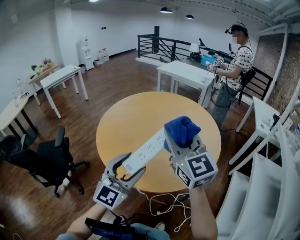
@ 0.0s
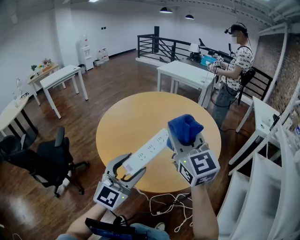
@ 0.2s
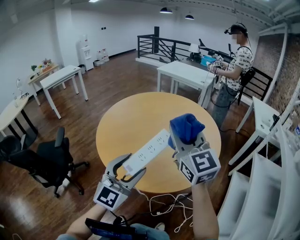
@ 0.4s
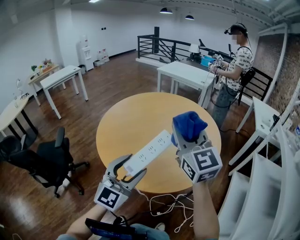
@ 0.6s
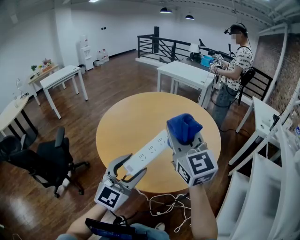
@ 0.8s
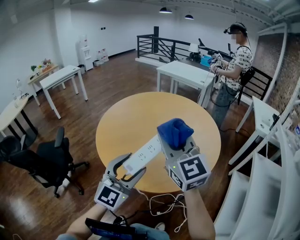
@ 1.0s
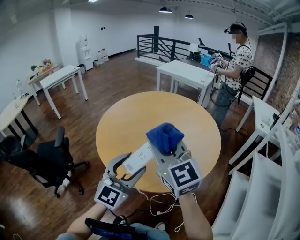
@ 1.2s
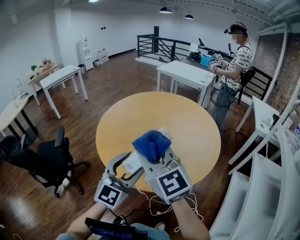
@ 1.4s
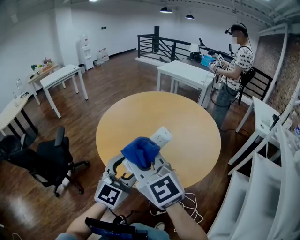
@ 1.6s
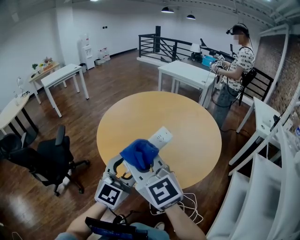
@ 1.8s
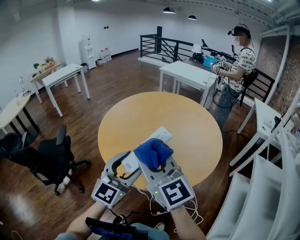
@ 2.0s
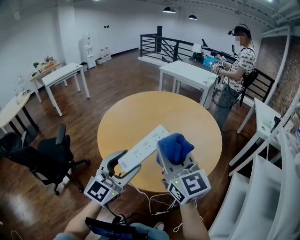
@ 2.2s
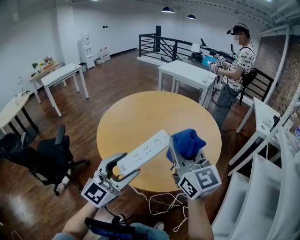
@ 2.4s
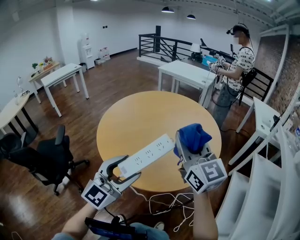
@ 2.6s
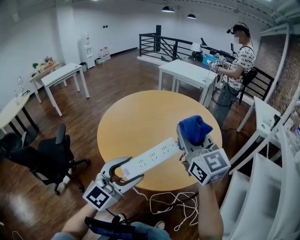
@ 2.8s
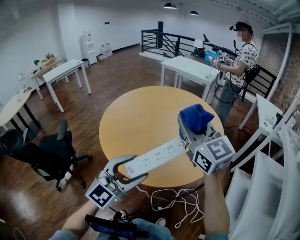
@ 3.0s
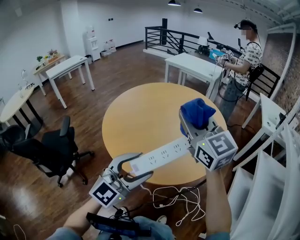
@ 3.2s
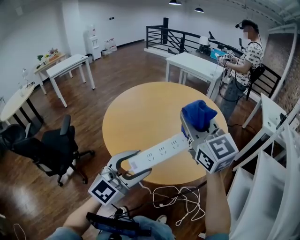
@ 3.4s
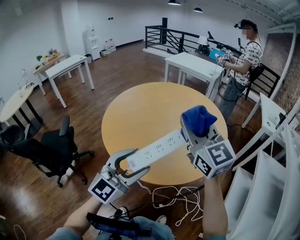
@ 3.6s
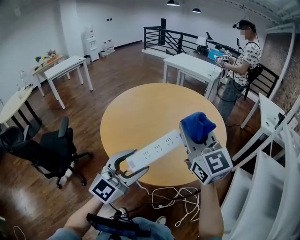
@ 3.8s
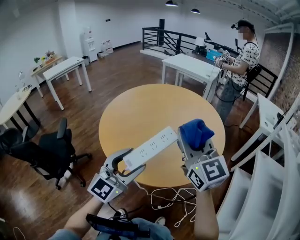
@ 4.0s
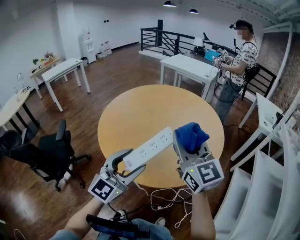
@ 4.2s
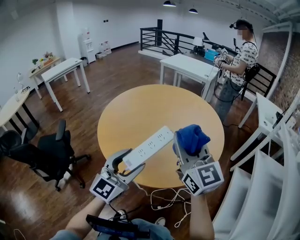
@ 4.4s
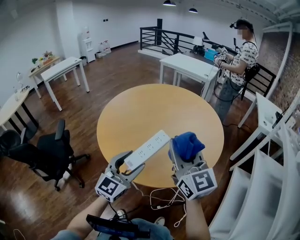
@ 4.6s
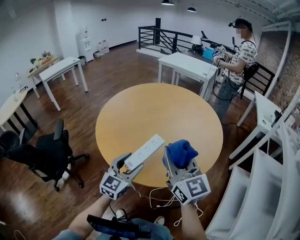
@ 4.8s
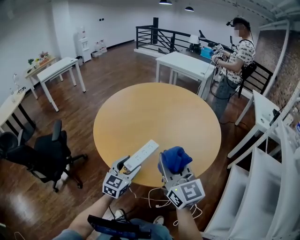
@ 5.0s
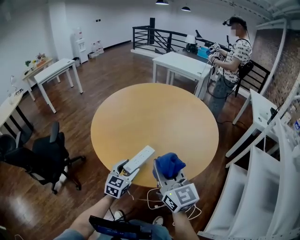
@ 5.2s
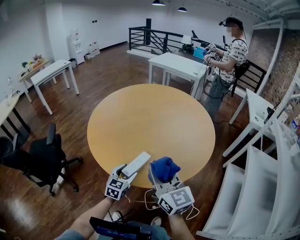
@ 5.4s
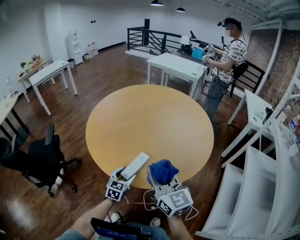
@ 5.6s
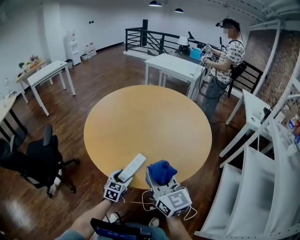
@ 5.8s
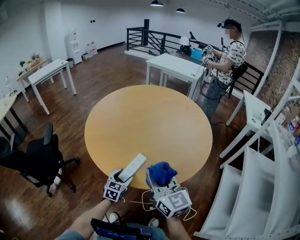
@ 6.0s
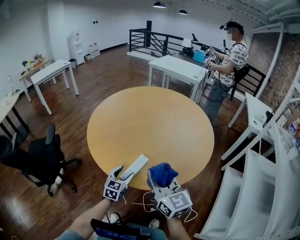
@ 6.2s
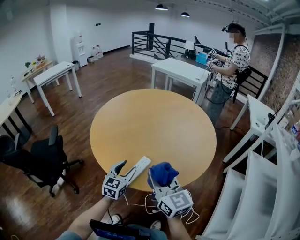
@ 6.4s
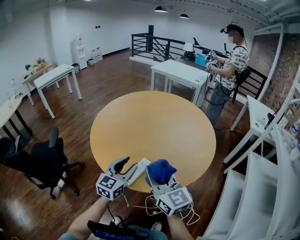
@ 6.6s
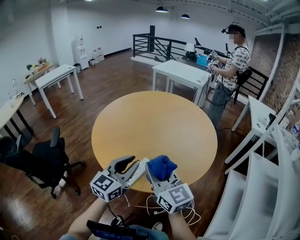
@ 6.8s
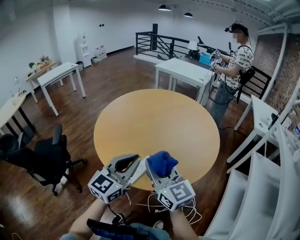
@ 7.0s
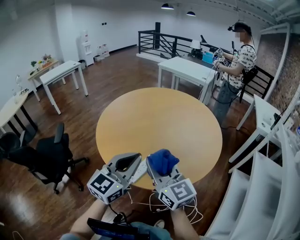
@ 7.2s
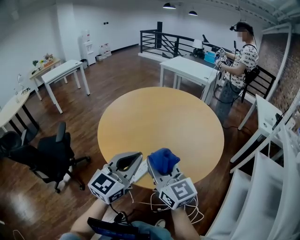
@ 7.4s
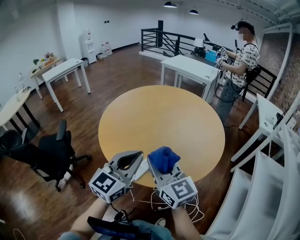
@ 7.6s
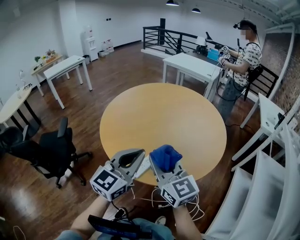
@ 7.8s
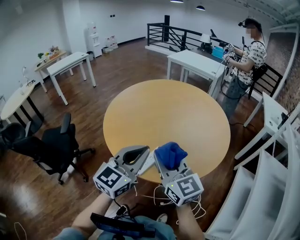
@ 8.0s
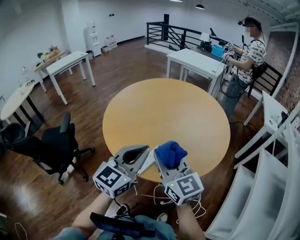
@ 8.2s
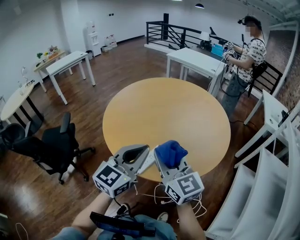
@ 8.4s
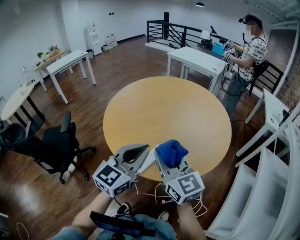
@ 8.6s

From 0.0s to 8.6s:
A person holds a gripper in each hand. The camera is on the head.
From 0.0s to 1.4s: The right gripper shifts some 10 cm to the left and backward.
From 1.4s to 2.8s: The right gripper goes roughly 15 cm to the right and forward.
From 2.8s to 4.4s: The left gripper ends up approximately 5 cm from where it was.
From 4.4s to 5.8s: The left gripper travels downward by about 30 cm, and tips its fingers downward by some 30 degrees. The right gripper moves downward and backward, about 15 cm.
From 5.8s to 7.2s: The right gripper ends up about 5 cm from where it was, while the left gripper is displaced upward by approximately 30 cm, angles its fingers upward, by roughly 30 degrees, and closes up.
From 7.2s to 8.6s: Both grippers stay put.

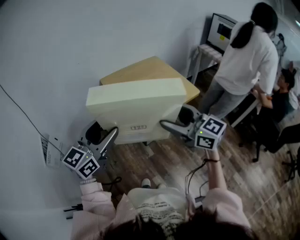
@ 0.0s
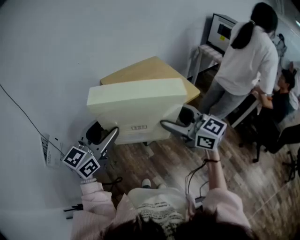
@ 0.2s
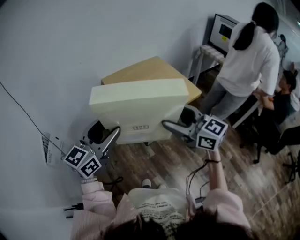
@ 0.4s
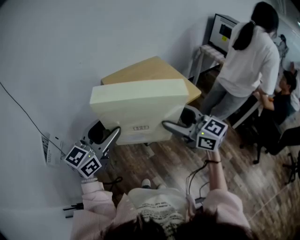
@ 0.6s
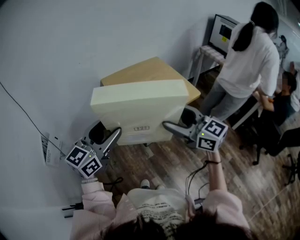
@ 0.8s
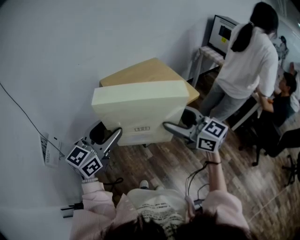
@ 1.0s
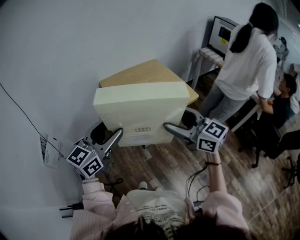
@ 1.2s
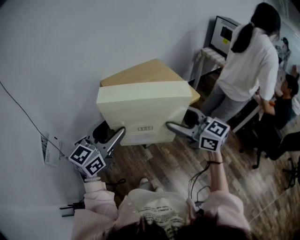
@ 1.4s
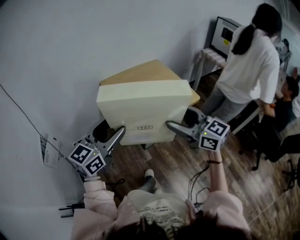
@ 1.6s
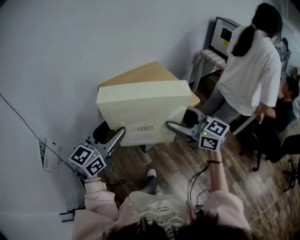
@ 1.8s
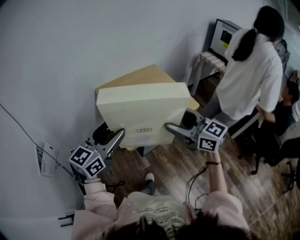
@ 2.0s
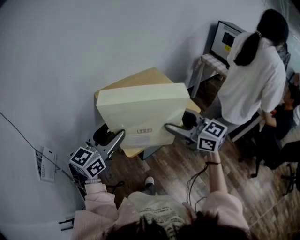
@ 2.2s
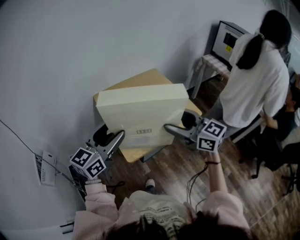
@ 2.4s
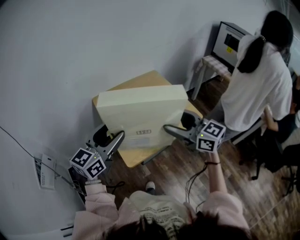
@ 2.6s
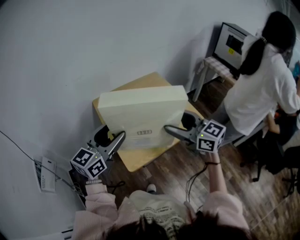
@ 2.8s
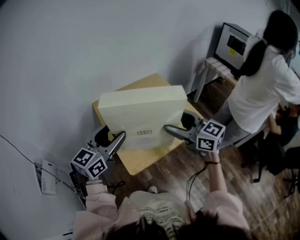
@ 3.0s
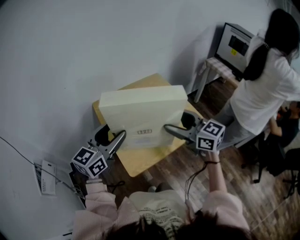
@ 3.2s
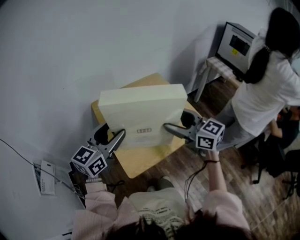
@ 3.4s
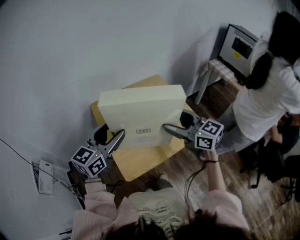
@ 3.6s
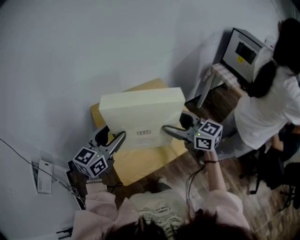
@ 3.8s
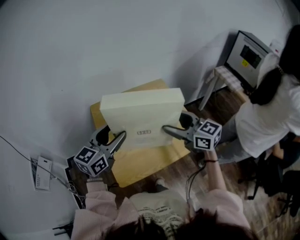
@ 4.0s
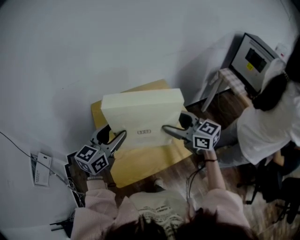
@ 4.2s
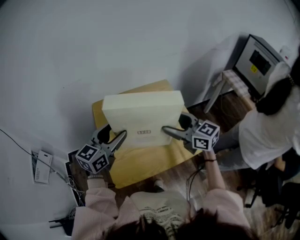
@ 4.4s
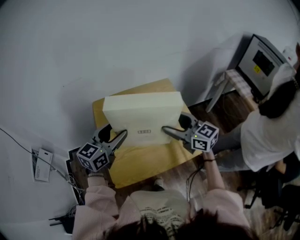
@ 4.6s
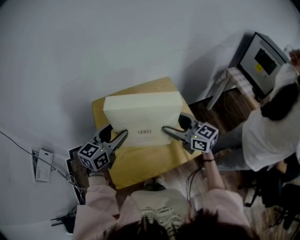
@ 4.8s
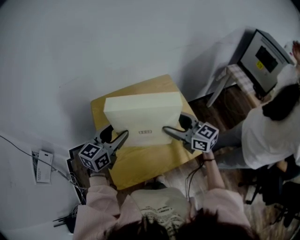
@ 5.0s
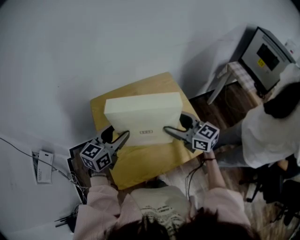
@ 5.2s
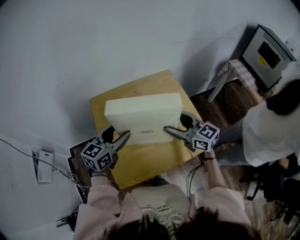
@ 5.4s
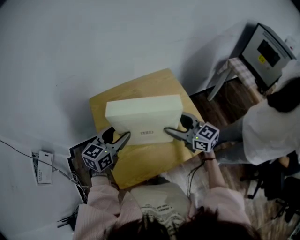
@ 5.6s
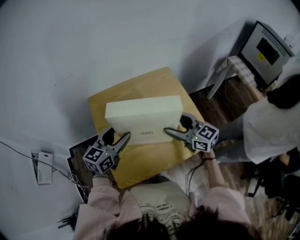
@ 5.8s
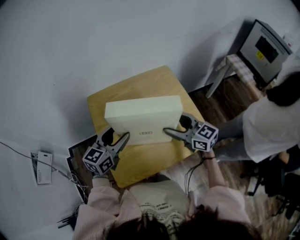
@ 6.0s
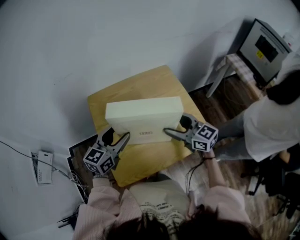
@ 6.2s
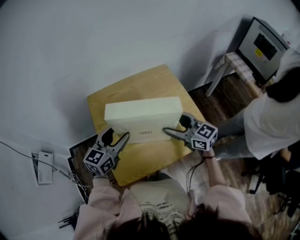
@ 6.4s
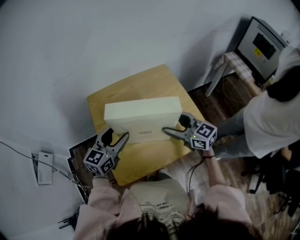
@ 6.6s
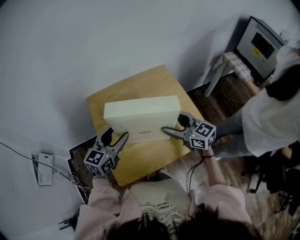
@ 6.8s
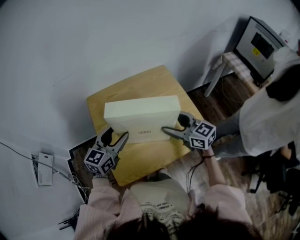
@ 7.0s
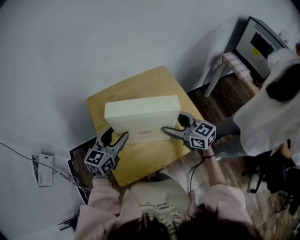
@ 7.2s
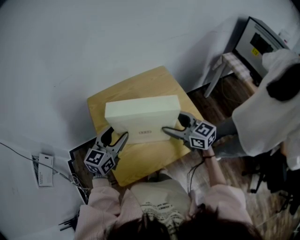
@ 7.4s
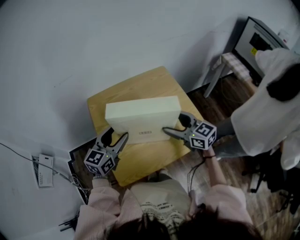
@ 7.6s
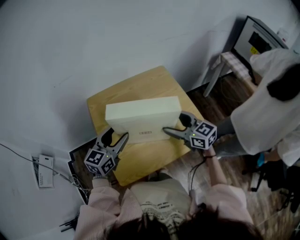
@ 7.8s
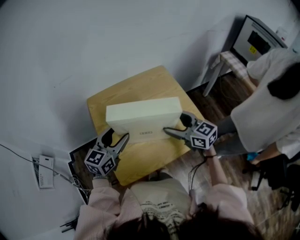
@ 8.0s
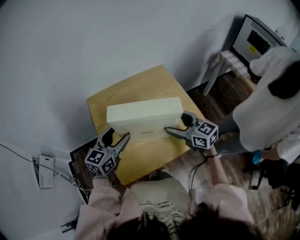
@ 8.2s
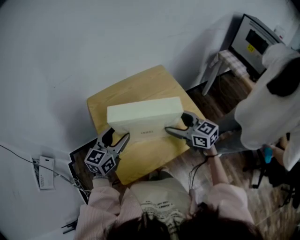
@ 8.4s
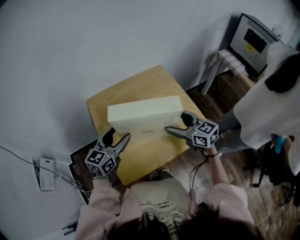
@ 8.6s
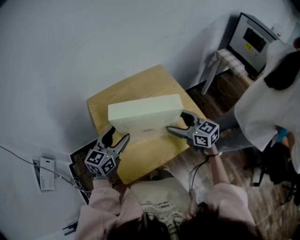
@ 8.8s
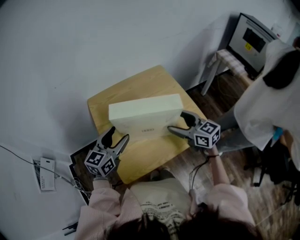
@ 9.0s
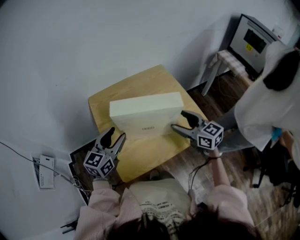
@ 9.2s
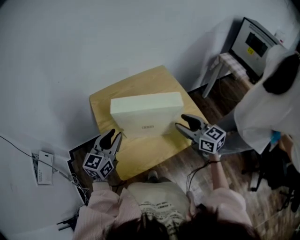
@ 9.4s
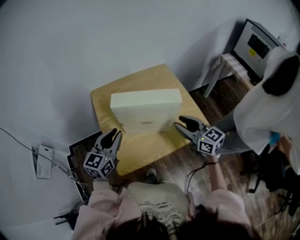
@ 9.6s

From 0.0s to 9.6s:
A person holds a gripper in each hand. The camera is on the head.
From 0.0s to 1.6s: The grippers both shift to the right by some 5 cm.
From 1.6s to 3.2s: Both grippers travel together forward, approximately 20 cm.
From 3.2s to 4.8s: The grippers both shift forward, to the right and downward by about 15 cm.
From 4.8s to 6.4s: Both grippers travel together downward, some 5 cm.
From 6.4s to 8.0s: The grippers move only a little.
From 8.0s to 9.6s: Both grippers travel together backward, some 5 cm. The left gripper closes, while the right gripper closes up.

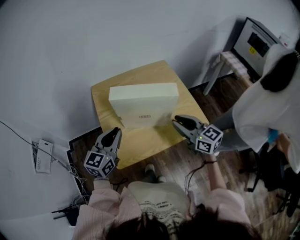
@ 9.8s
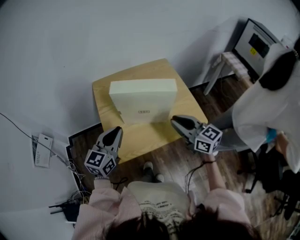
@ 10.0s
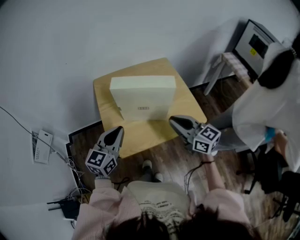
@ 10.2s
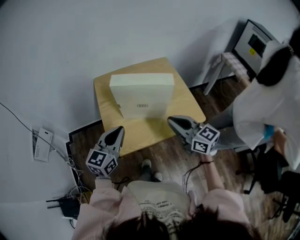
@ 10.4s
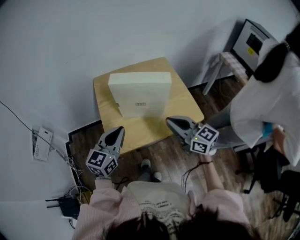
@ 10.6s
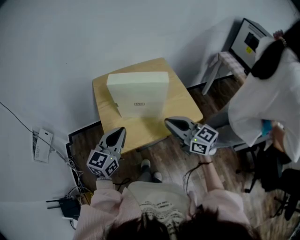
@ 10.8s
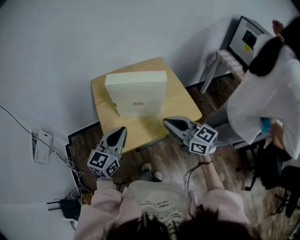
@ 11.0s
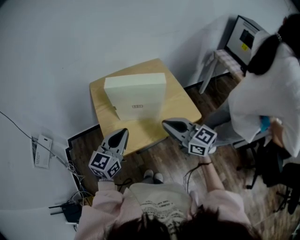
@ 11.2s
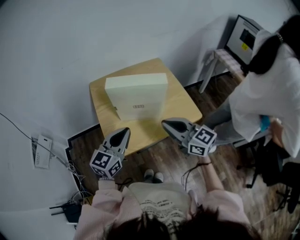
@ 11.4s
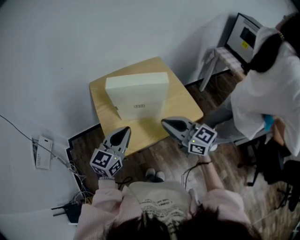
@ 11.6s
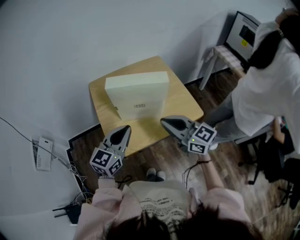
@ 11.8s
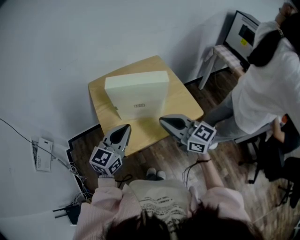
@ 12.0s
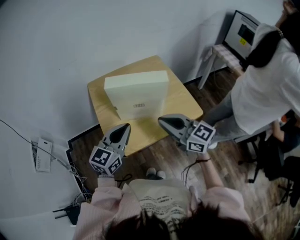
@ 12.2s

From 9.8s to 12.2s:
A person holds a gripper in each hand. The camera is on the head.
From 9.8s to 11.0s: Both grippers move backward, about 10 cm.
From 11.0s to 12.2s: The grippers stay close to where they were, moving slightly.

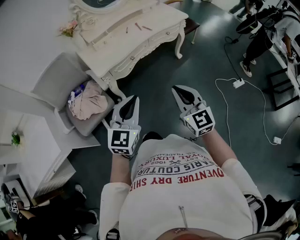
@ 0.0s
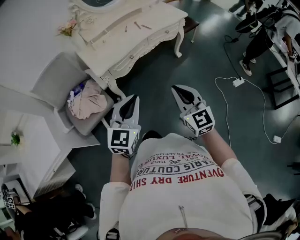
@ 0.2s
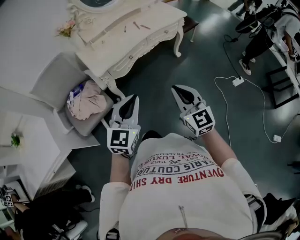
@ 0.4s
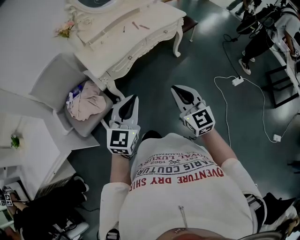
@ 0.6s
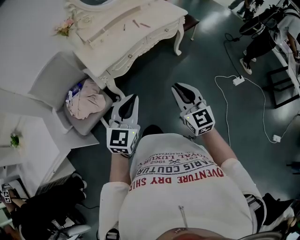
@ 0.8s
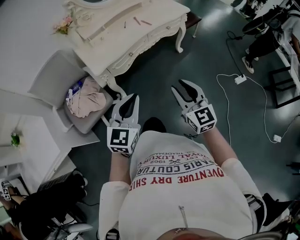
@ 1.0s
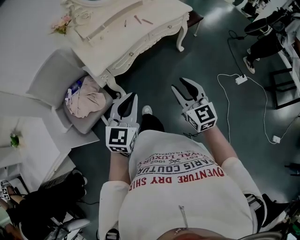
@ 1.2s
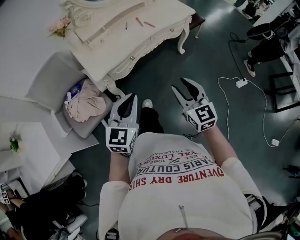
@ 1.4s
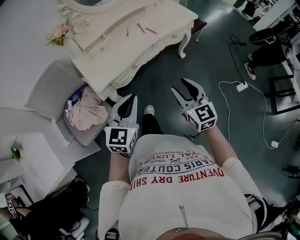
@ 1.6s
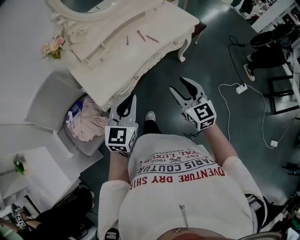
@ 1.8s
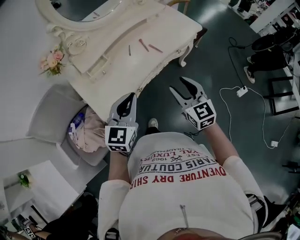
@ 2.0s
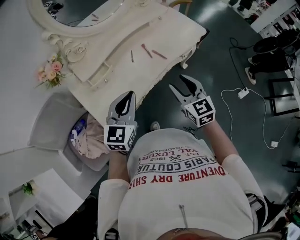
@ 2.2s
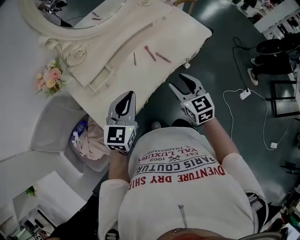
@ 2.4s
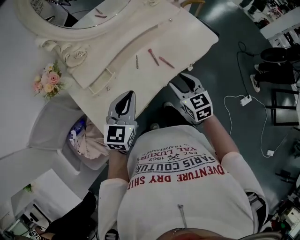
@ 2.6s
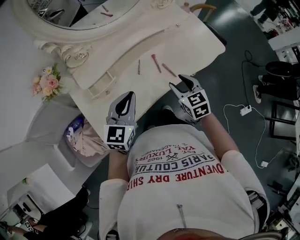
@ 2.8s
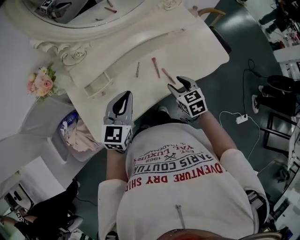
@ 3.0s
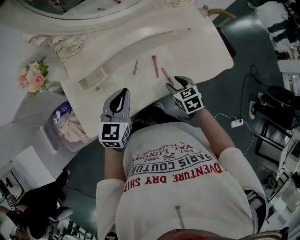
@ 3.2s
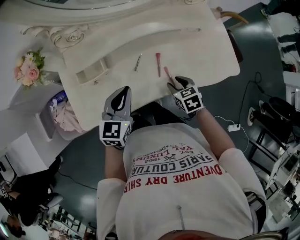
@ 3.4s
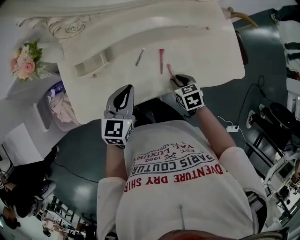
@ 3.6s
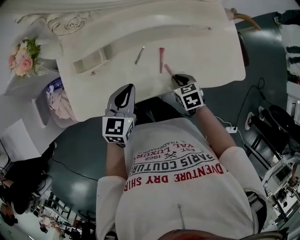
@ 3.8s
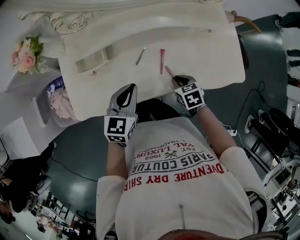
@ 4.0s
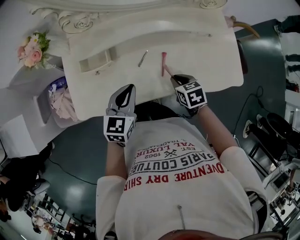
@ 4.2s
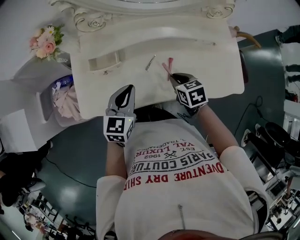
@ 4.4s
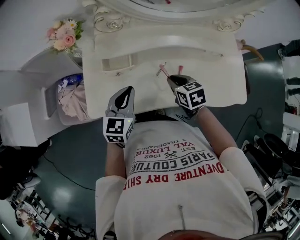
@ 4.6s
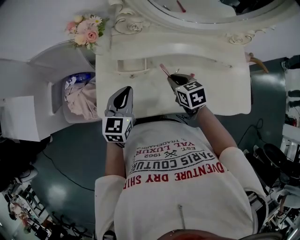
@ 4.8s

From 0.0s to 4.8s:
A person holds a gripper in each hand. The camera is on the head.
From 0.0s to 1.6s: Both grippers move forward, about 20 cm. The right gripper opens up.
From 1.6s to 3.2s: Both grippers are carried forward, approximately 40 cm. The left gripper swivels approximately 20 degrees. Meanwhile the right gripper tips its fingers downward by approximately 40 degrees.
From 3.2s to 4.8s: The right gripper moves approximately 20 cm, turns by about 20 degrees, and closes, while the left gripper shifts by some 15 cm, and rotates roughly 20 degrees.
